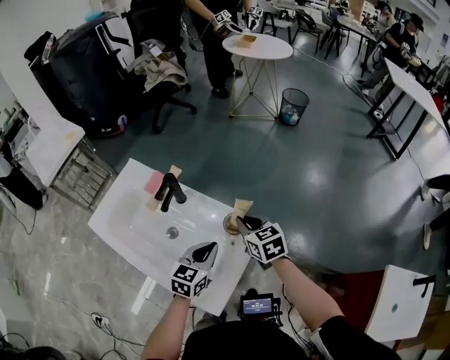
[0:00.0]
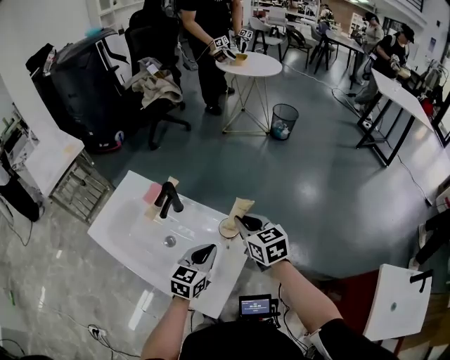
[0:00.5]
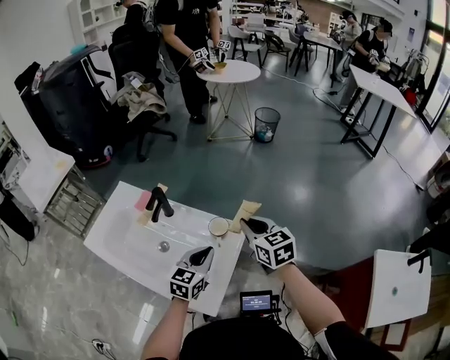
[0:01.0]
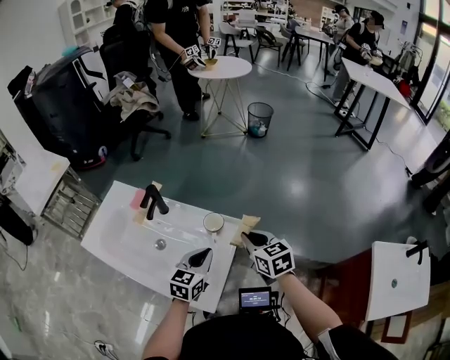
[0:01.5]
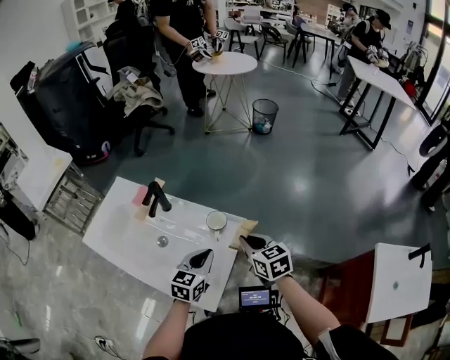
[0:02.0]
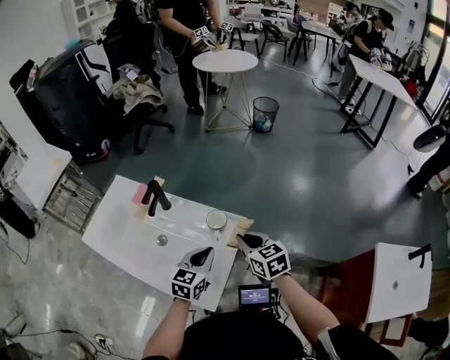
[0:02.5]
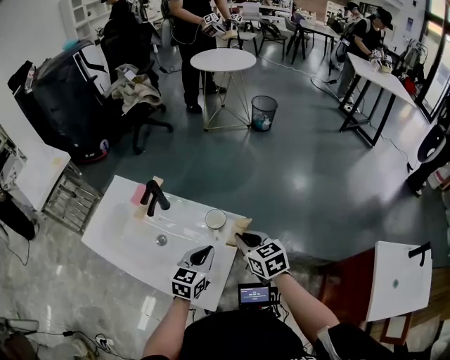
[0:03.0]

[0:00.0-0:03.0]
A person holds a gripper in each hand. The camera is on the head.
0:00.0 to 0:01.5: The left gripper moves about 5 cm; the right gripper moves backward and to the right, about 15 cm.
0:01.5 to 0:03.0: The grippers make only small movements.

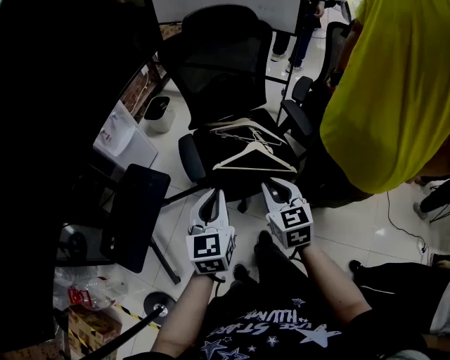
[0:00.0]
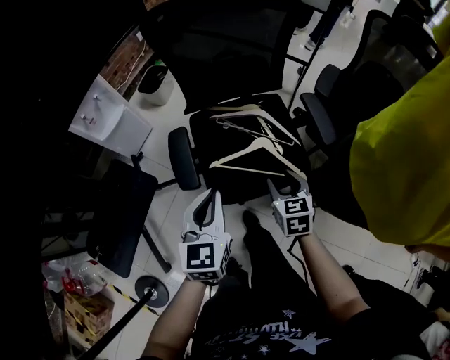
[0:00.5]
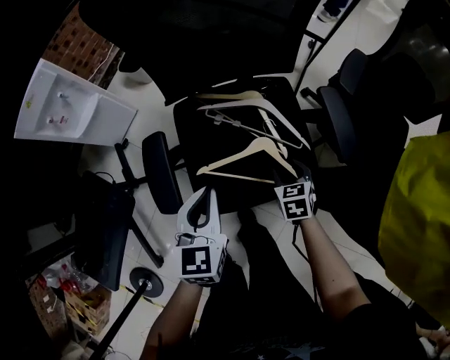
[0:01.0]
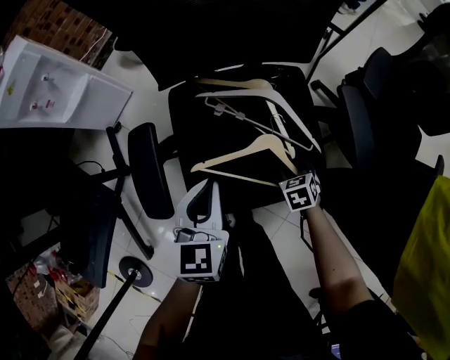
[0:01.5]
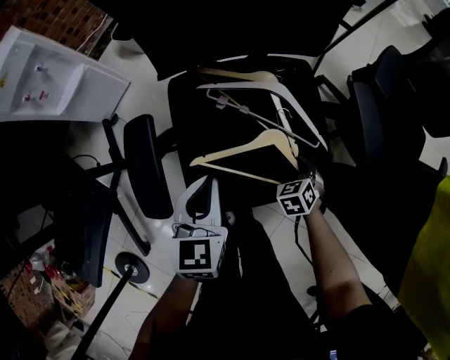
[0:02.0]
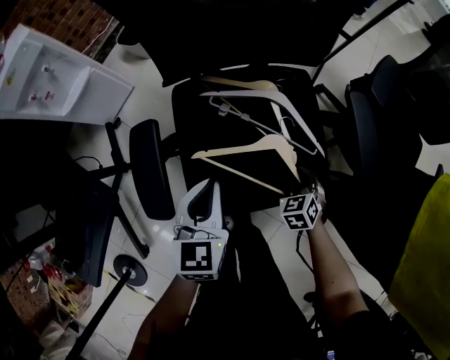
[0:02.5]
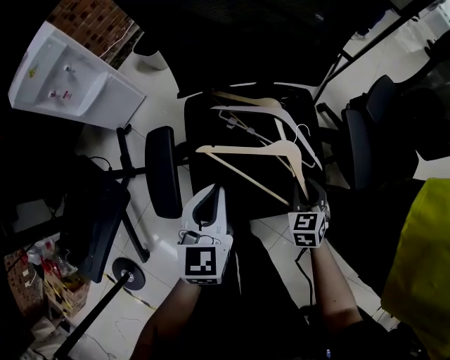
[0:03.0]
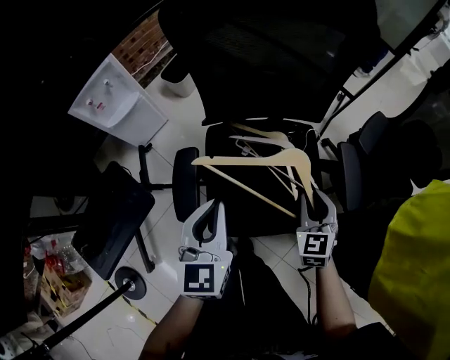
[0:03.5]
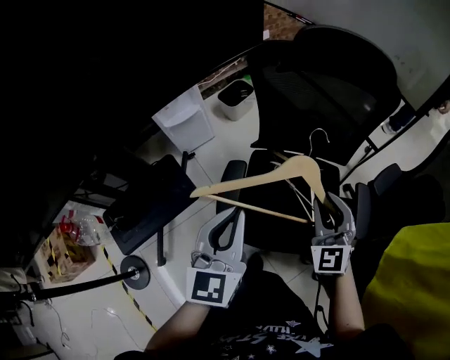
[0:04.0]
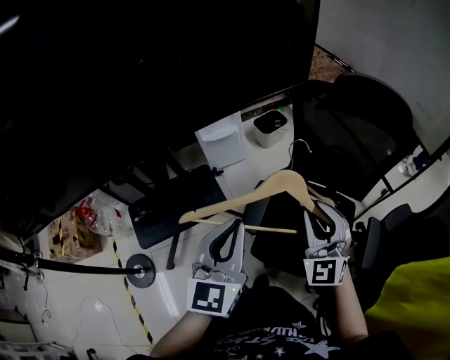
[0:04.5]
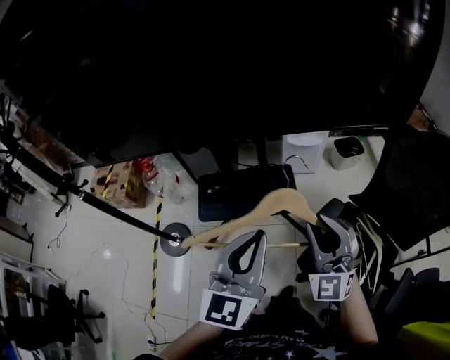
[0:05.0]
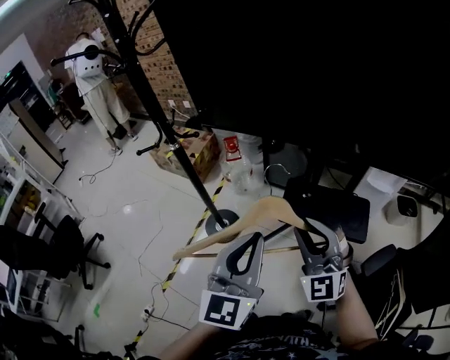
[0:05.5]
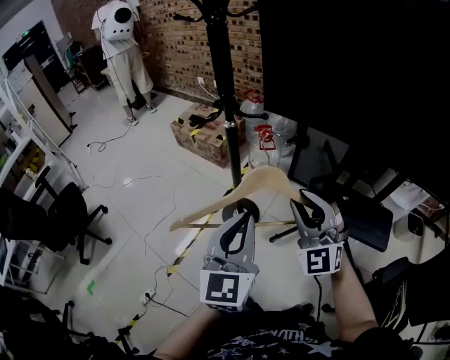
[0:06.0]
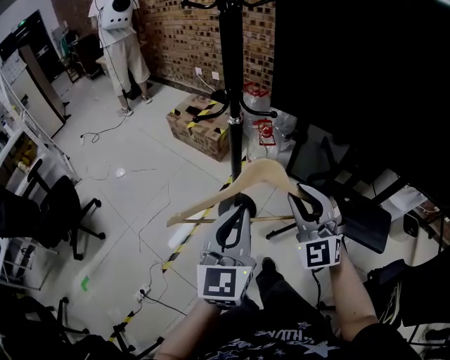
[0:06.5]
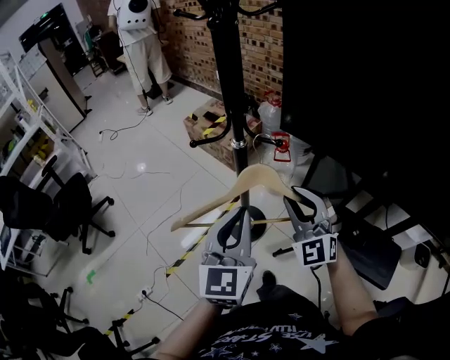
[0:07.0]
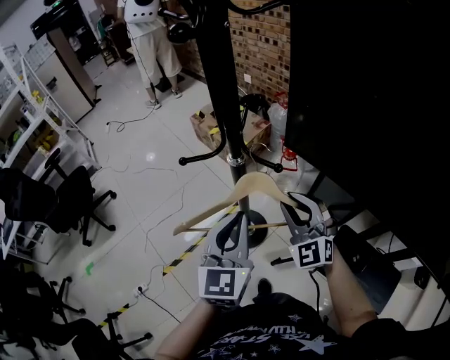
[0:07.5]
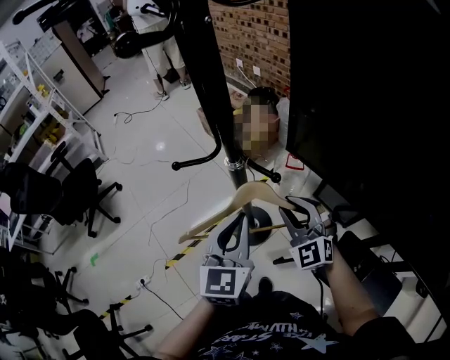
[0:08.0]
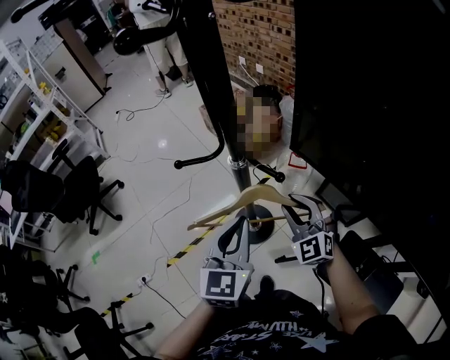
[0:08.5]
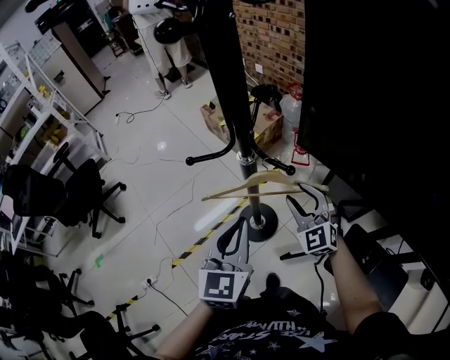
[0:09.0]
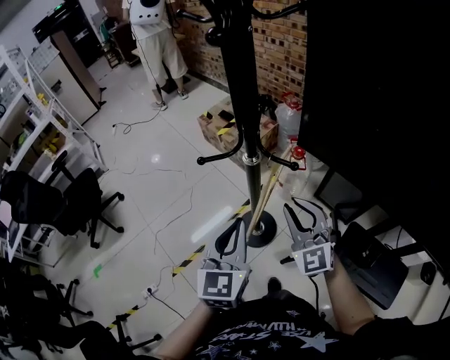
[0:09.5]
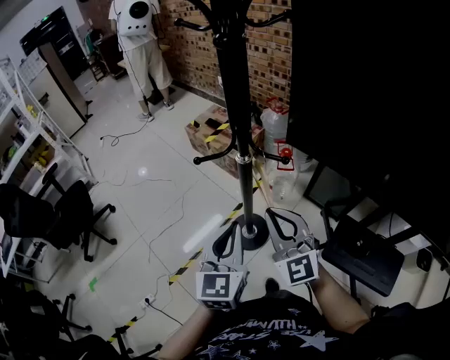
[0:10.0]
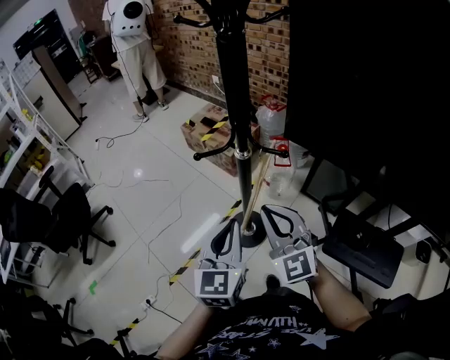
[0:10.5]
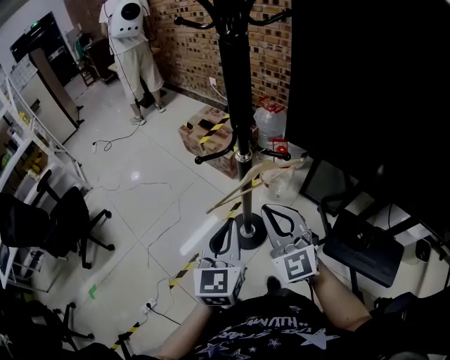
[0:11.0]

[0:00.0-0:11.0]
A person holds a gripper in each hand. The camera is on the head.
0:00.0 to 0:02.0: The two grippers go approximately 40 cm downward and forward. The right gripper angles its fingers downward, by some 40 degrees, and opens, then closes once more.
0:02.0 to 0:03.5: The right gripper moves upward, some 25 cm, and tips its fingers upward by approximately 30 degrees, while the left gripper moves upward, approximately 15 cm.
0:03.5 to 0:05.5: The pair of grippers is taken approximately 60 cm. The left gripper swivels about 70 degrees. Meanwhile the right gripper tips its fingers upward by some 30 degrees.
0:05.5 to 0:07.5: The left gripper moves some 30 cm, and swivels approximately 30 degrees. Meanwhile the right gripper moves roughly 35 cm, and turns by approximately 30 degrees.
0:07.5 to 0:09.0: The right gripper shifts about 5 cm downward, and opens up.
0:09.0 to 0:11.0: The right gripper is displaced upward, to the left and backward by approximately 20 cm, and closes its fingers, while the left gripper is displaced to the left by about 5 cm.

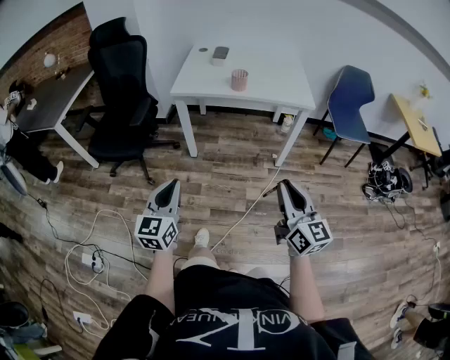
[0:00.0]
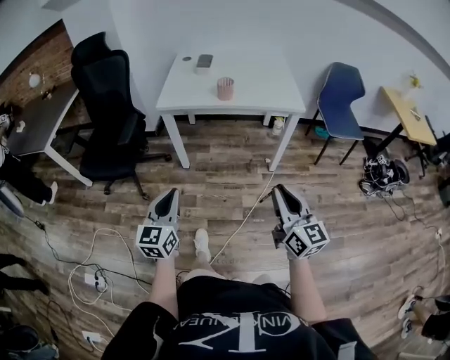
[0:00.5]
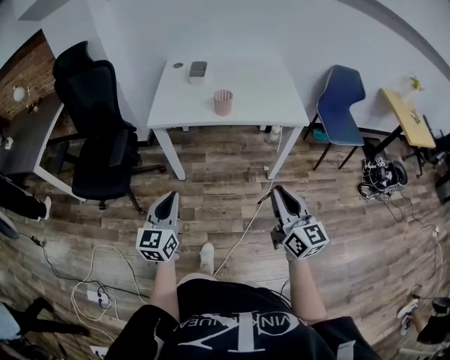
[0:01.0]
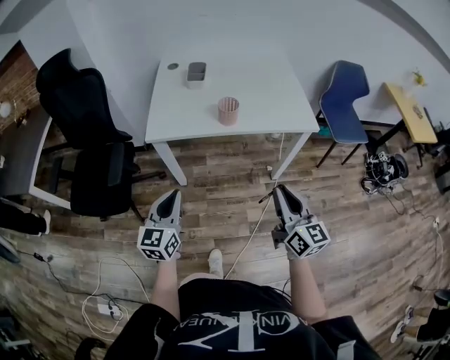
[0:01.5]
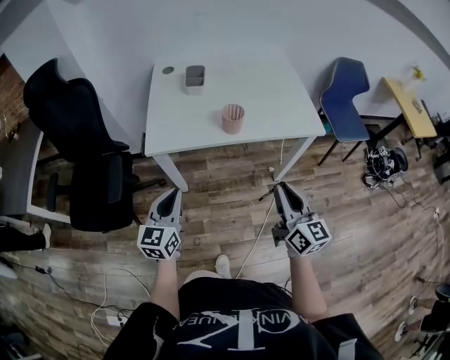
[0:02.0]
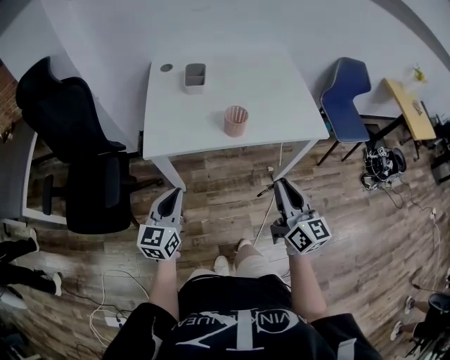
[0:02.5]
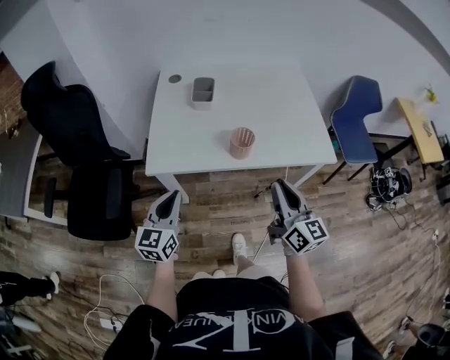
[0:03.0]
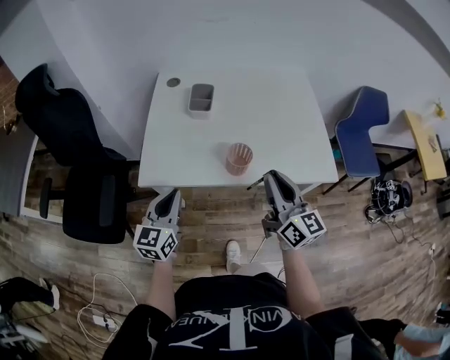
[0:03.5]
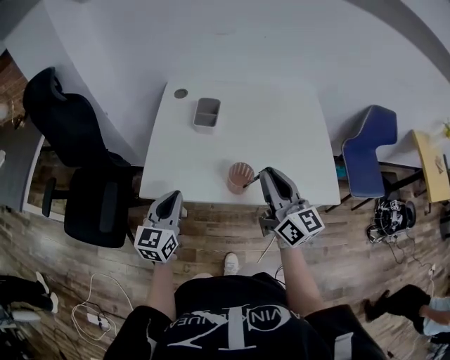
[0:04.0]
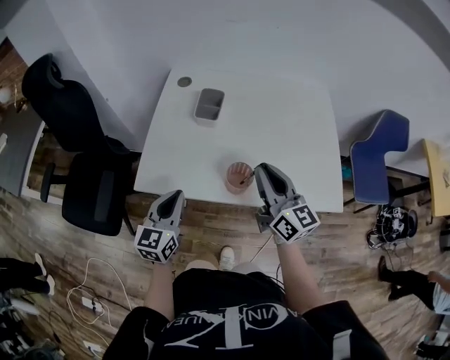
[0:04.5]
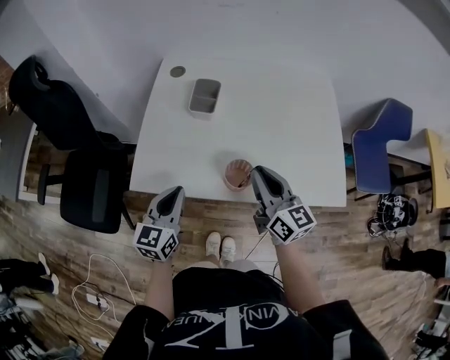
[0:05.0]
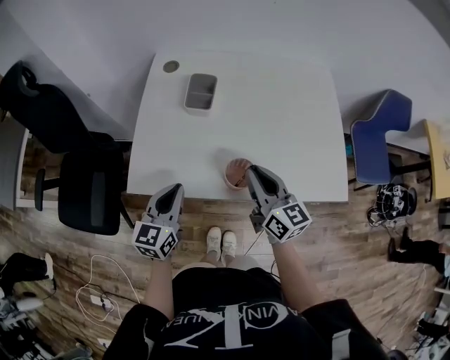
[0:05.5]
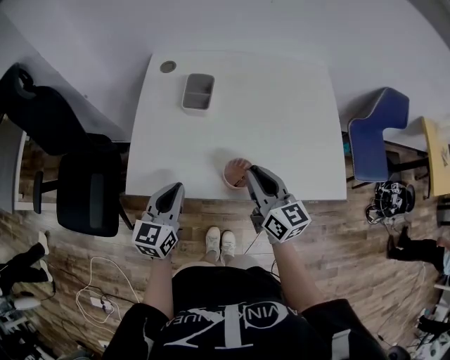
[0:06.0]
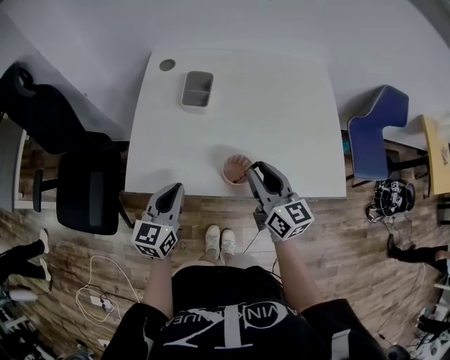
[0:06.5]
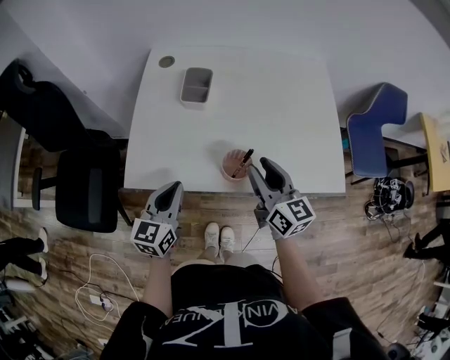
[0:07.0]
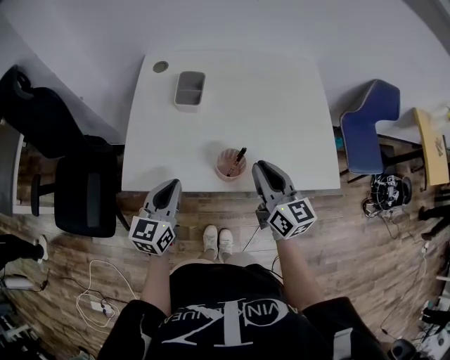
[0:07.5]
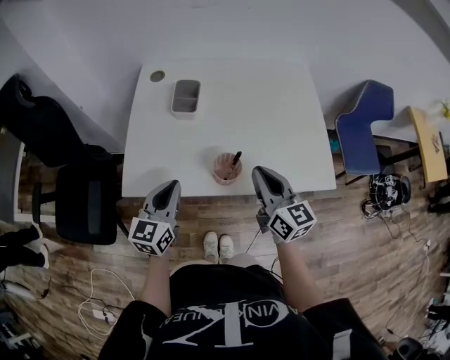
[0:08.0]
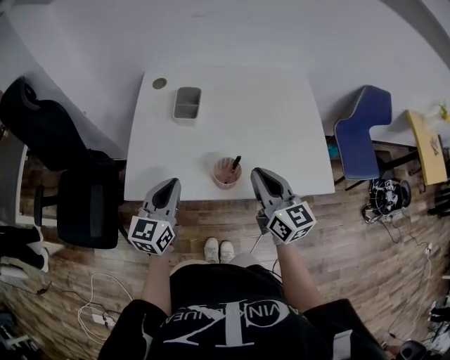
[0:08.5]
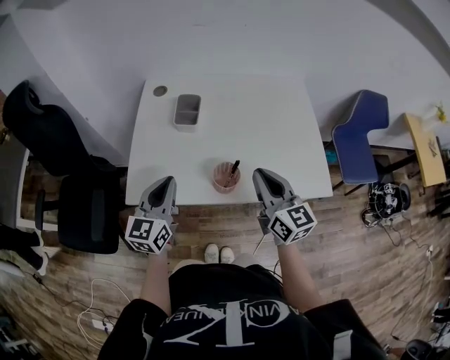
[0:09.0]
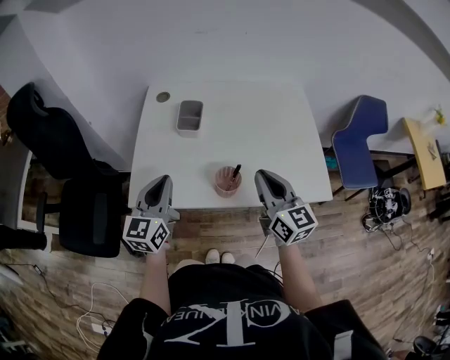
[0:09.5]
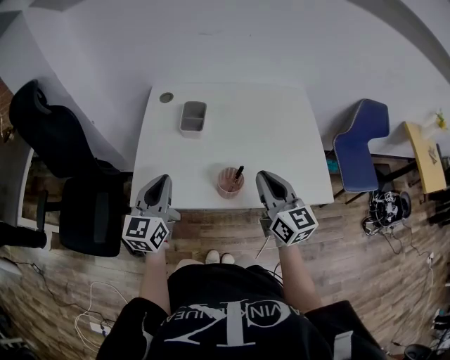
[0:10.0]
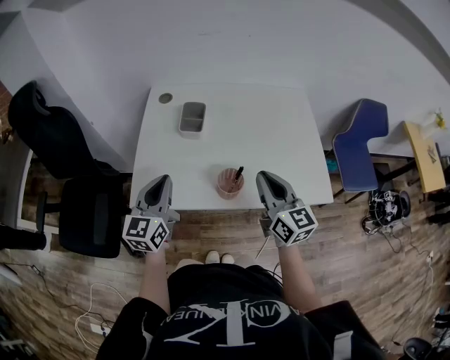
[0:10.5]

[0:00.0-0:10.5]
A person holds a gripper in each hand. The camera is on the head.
0:00.0 to 0:02.0: The two grippers go approximately 35 cm forward.
0:02.0 to 0:04.0: The two grippers go approximately 25 cm forward.
0:04.0 to 0:06.5: The right gripper travels downward by some 10 cm. The left gripper goes some 5 cm downward.
0:06.5 to 0:08.5: The two grippers go approximately 5 cm upward. The right gripper closes its fingers.
0:08.5 to 0:10.5: The left gripper moves about 5 cm.

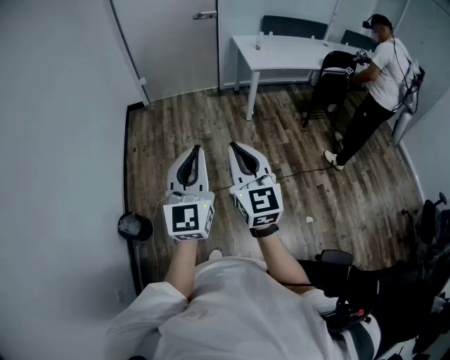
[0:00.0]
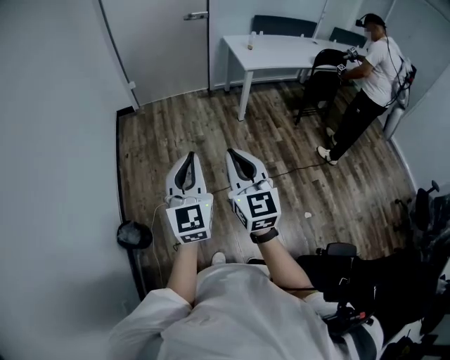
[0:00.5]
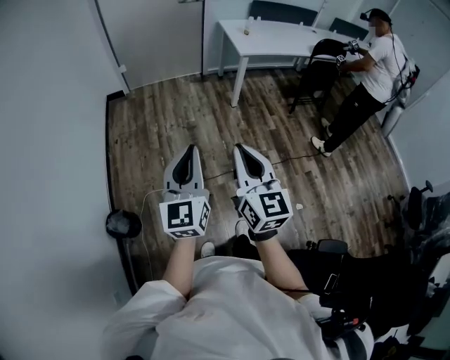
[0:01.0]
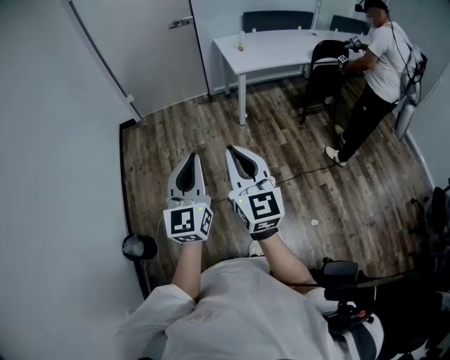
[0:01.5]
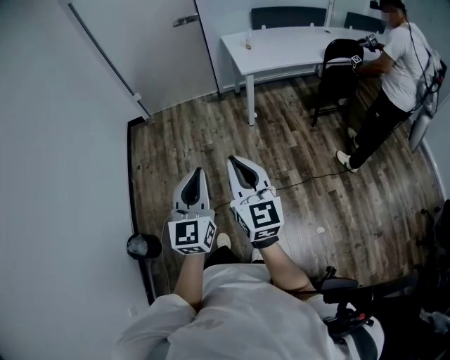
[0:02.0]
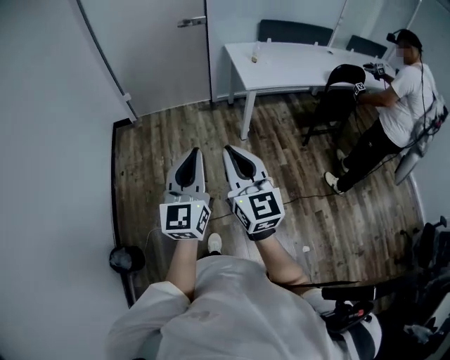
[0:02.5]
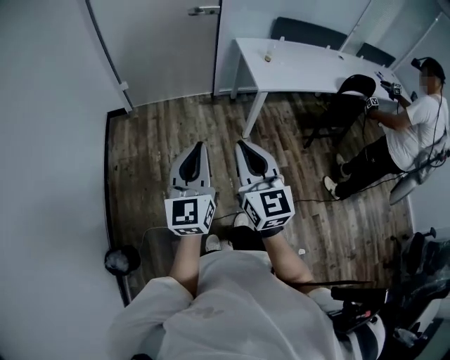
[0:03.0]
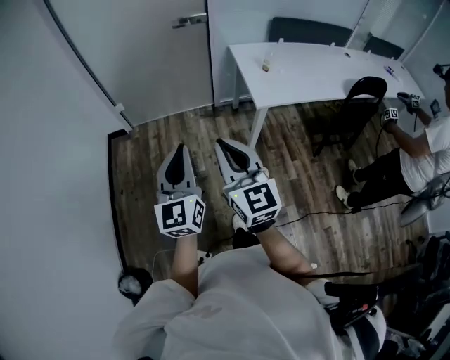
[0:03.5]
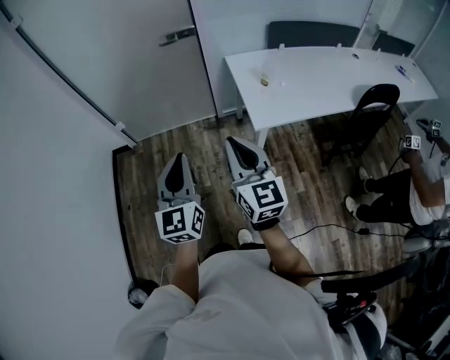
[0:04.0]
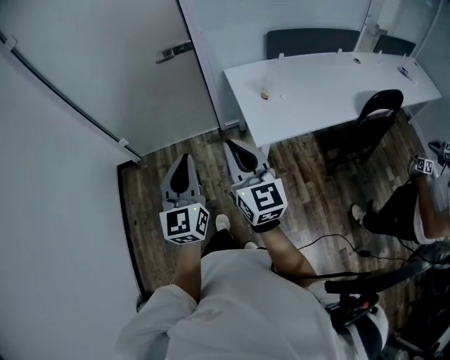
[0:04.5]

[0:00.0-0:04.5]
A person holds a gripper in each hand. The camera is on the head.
0:00.0 to 0:02.0: The right gripper goes roughly 20 cm forward and to the right, while the left gripper is displaced forward, to the right and downward by about 25 cm.
0:02.0 to 0:04.5: The two grippers travel together, forward, approximately 70 cm.
